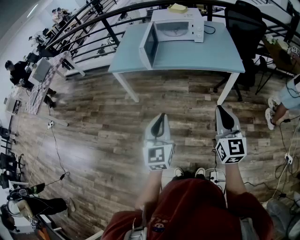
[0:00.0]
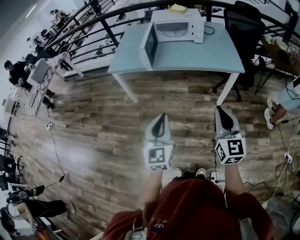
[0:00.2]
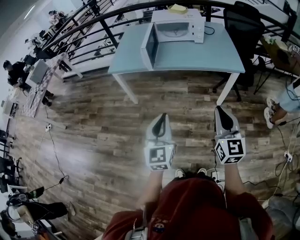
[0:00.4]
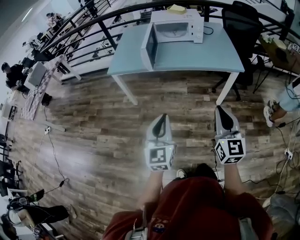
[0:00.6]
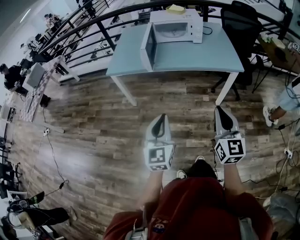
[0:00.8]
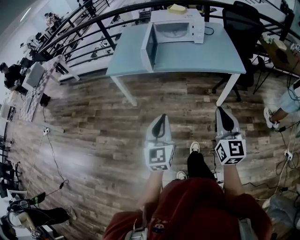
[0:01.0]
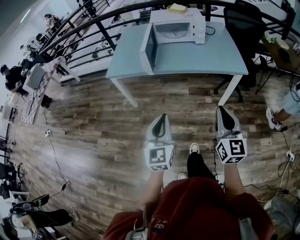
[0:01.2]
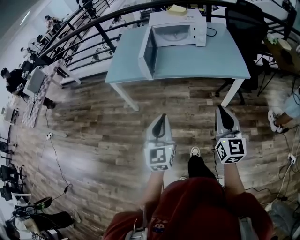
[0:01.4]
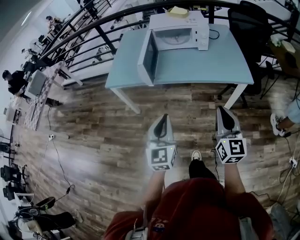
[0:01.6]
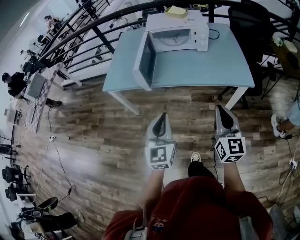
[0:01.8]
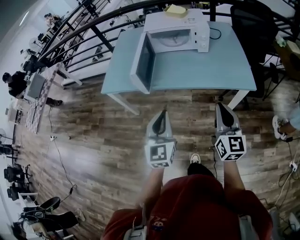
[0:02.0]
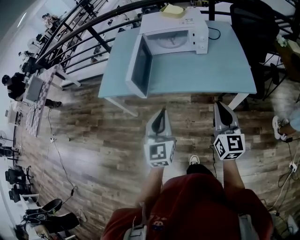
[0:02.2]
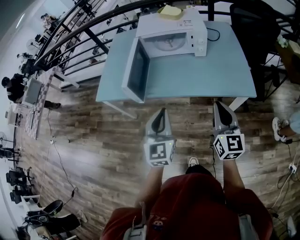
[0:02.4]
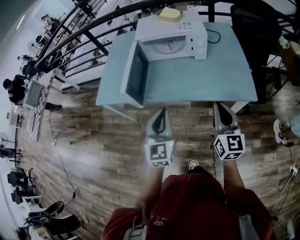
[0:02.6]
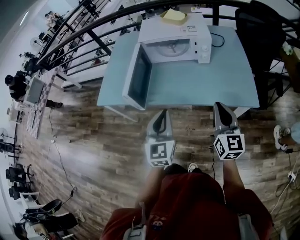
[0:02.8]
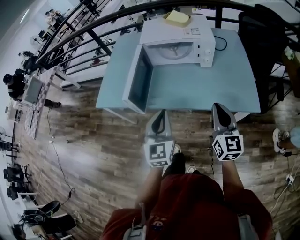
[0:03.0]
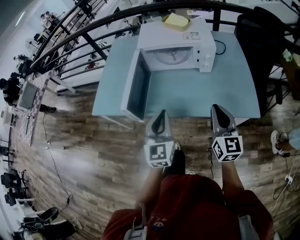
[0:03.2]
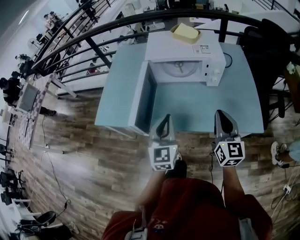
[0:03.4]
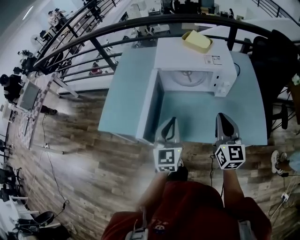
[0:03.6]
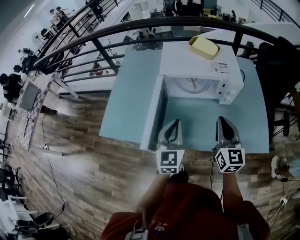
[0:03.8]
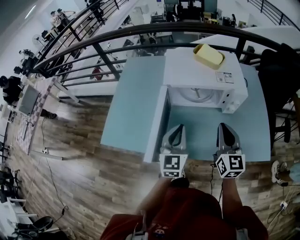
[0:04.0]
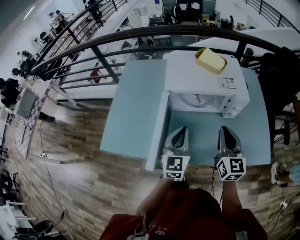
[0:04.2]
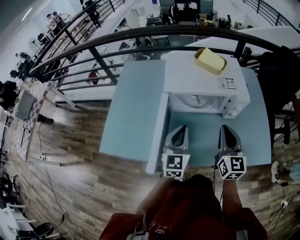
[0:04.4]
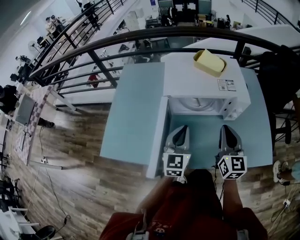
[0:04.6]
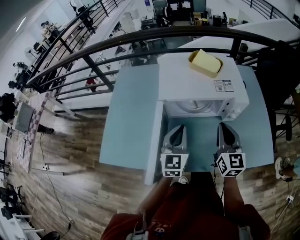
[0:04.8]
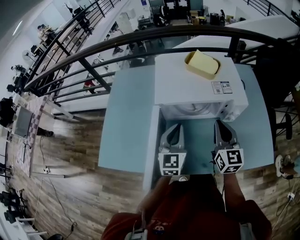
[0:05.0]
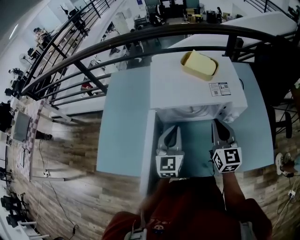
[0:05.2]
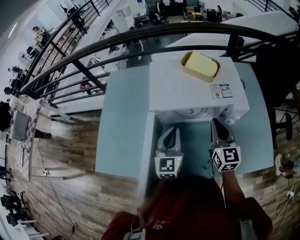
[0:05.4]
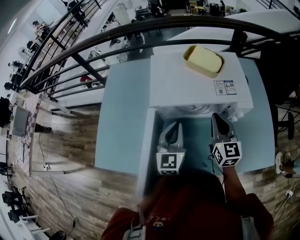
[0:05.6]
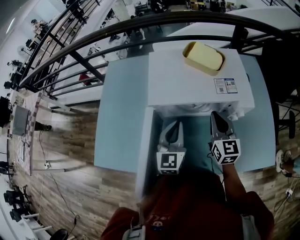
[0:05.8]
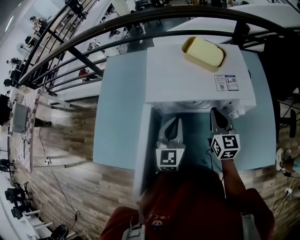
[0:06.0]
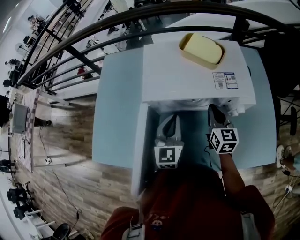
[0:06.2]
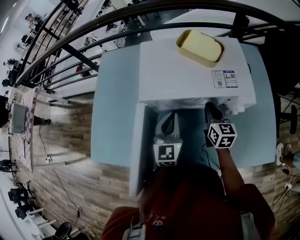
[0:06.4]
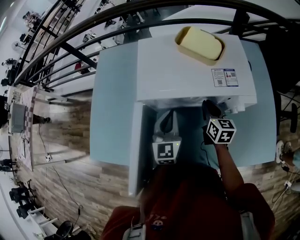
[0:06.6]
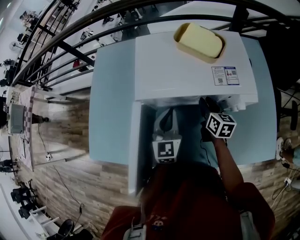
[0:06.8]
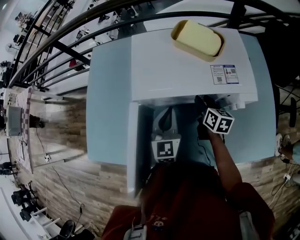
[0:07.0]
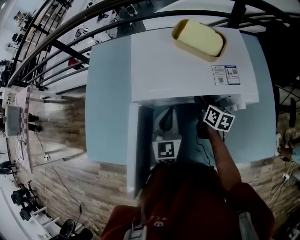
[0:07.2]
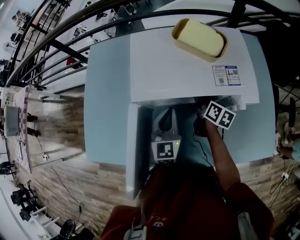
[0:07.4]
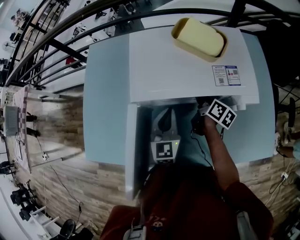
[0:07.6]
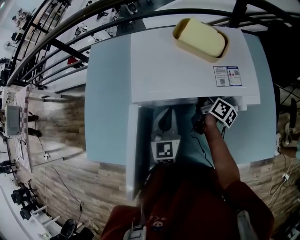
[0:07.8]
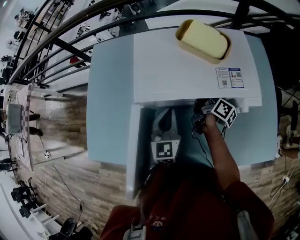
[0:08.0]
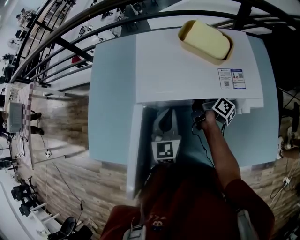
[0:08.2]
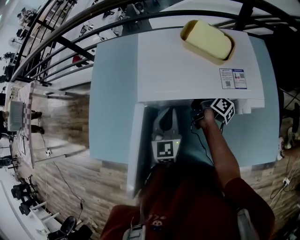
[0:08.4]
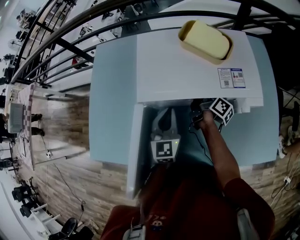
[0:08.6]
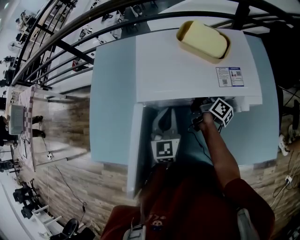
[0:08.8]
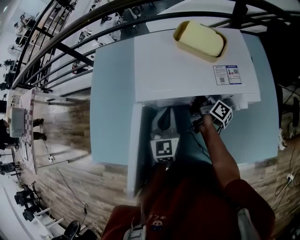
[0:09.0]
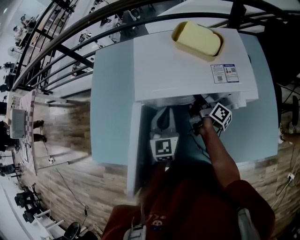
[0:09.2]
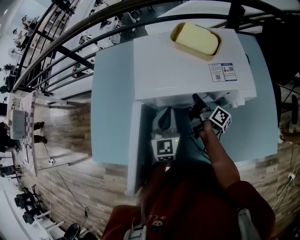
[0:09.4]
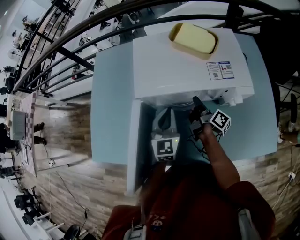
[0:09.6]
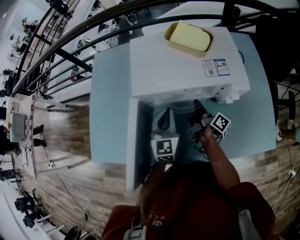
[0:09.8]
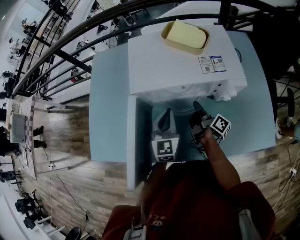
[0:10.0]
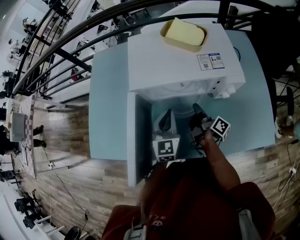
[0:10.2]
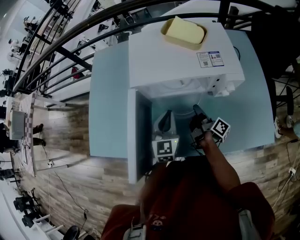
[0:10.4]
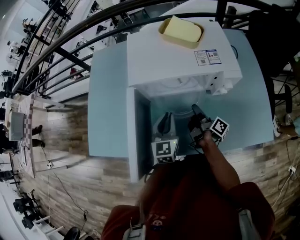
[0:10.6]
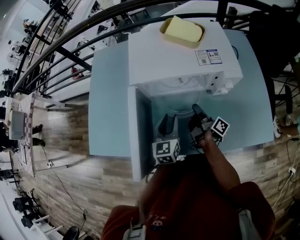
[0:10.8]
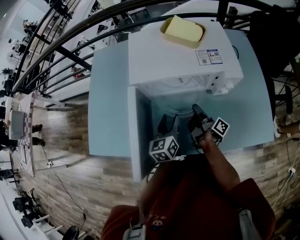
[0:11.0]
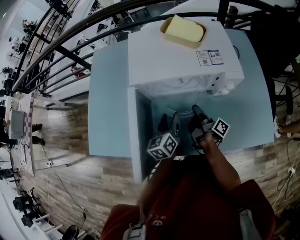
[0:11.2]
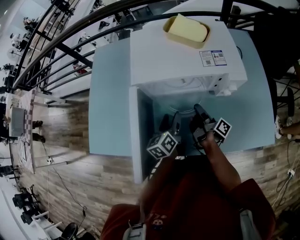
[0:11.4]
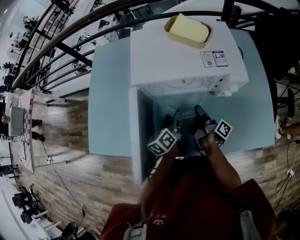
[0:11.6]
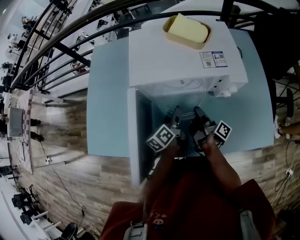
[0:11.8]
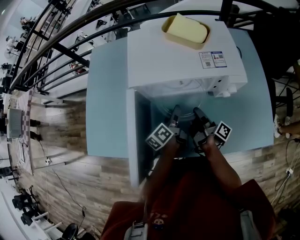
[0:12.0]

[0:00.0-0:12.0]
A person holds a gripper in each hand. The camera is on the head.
0:00.0 to 0:01.6: Both grippers travel together forward, about 20 cm.
0:01.6 to 0:03.0: The grippers both shift forward by about 30 cm.
0:03.0 to 0:04.4: The right gripper heads forward and to the left, covering some 30 cm. Meanwhile the left gripper travels forward by approximately 30 cm.
0:04.4 to 0:06.0: Both grippers travel together forward and downward, some 15 cm.
0:06.0 to 0:07.6: The right gripper is displaced downward and forward by approximately 15 cm, twists roughly 50 degrees clockwise, seen from behind, and opens. Meanwhile the left gripper shifts about 5 cm downward.
0:07.6 to 0:09.0: The right gripper turns by about 30 degrees, and closes its fingers.
0:09.0 to 0:10.4: The left gripper heads backward, covering roughly 10 cm. The right gripper goes about 15 cm backward.
0:10.4 to 0:12.0: The left gripper heads downward, covering roughly 10 cm, rolls counterclockwise, seen from behind, by some 60 degrees, and opens up.

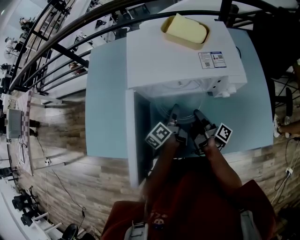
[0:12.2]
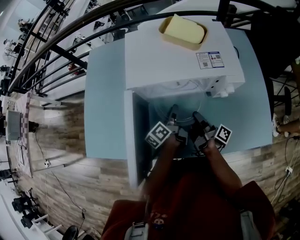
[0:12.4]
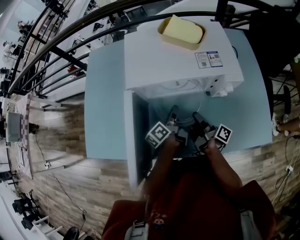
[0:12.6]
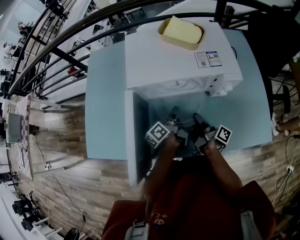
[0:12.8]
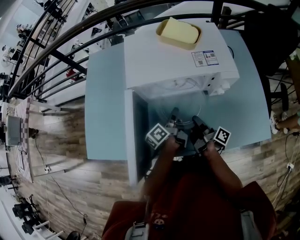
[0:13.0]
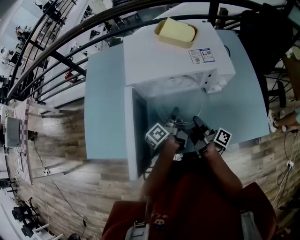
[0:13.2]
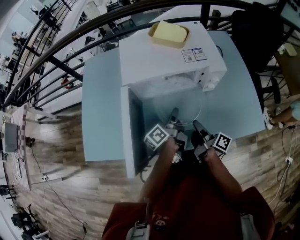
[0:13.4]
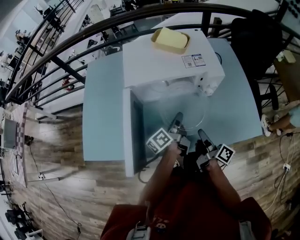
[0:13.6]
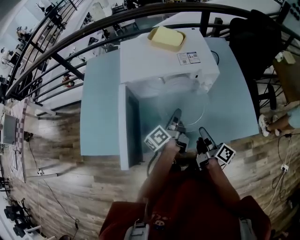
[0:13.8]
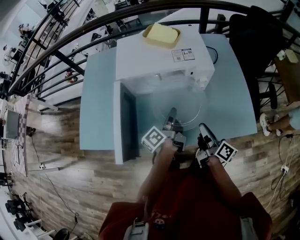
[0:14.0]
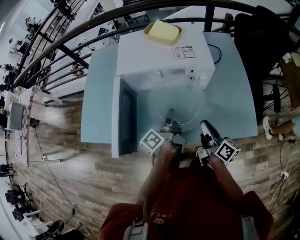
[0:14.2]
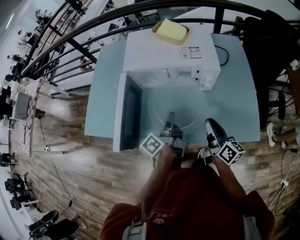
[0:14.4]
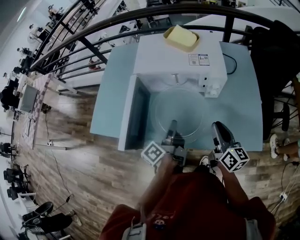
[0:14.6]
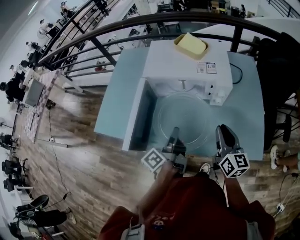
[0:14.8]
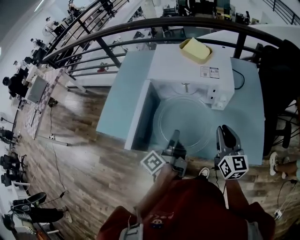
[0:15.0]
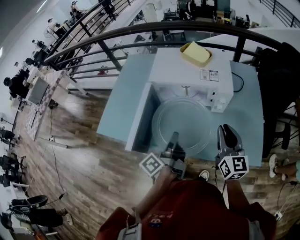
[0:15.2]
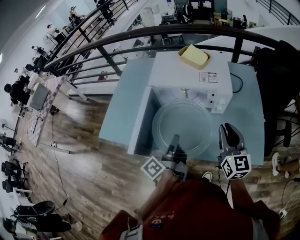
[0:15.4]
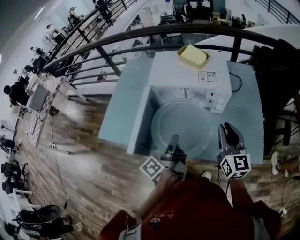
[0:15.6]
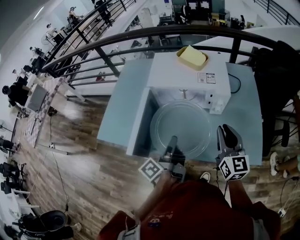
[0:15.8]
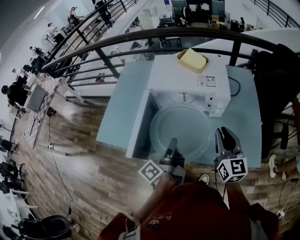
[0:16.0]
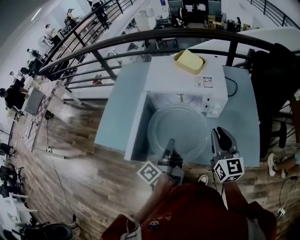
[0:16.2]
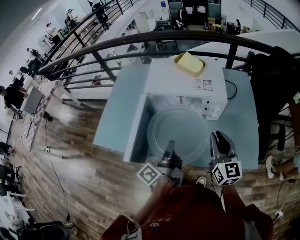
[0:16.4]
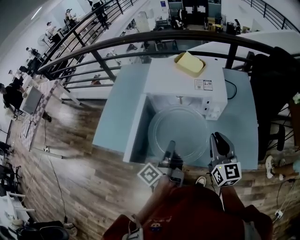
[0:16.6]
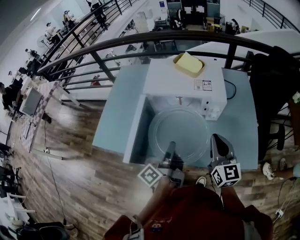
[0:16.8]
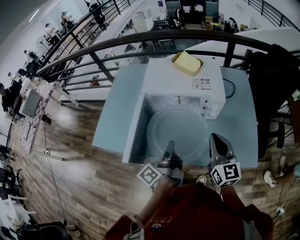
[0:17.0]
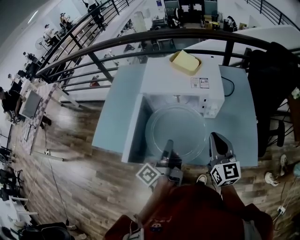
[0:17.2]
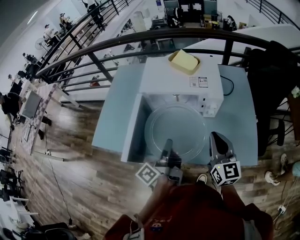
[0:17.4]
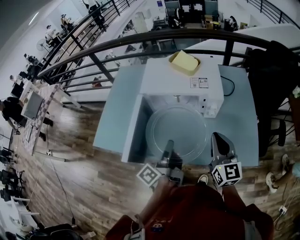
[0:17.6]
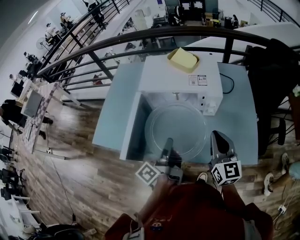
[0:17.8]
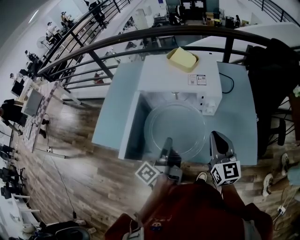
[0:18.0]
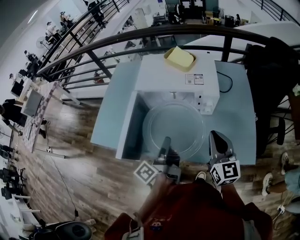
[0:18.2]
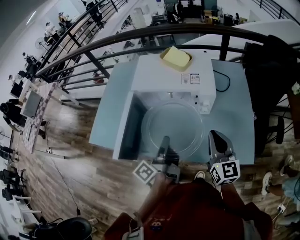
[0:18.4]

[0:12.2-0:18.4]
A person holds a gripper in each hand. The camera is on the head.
0:12.2 to 0:13.8: The right gripper heads backward, upward and to the right, covering roughly 20 cm, and changes its angle by some 30 degrees, while the left gripper shifts roughly 15 cm upward, backward and to the right, and closes up.
0:13.8 to 0:15.4: The right gripper heads upward, covering approximately 15 cm, and rotates around the line of its fingers by approximately 60 degrees, counterclockwise from behind; the left gripper shifts some 15 cm backward and upward, and turns by about 20 degrees.
0:15.4 to 0:16.8: There are only small adjustments of the grippers.
0:16.8 to 0:18.4: The right gripper travels to the right by about 5 cm.

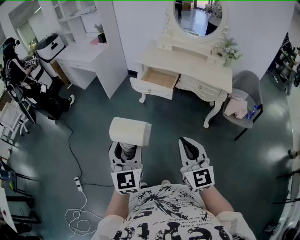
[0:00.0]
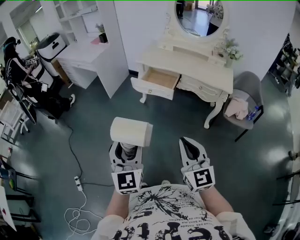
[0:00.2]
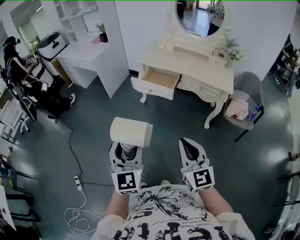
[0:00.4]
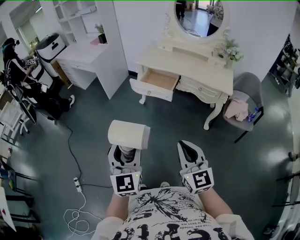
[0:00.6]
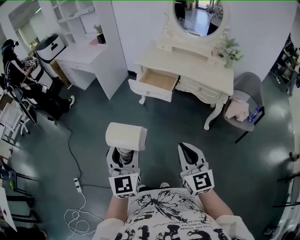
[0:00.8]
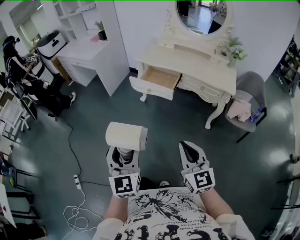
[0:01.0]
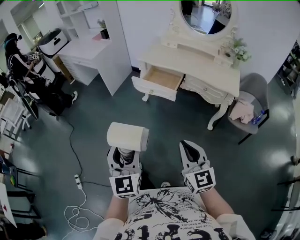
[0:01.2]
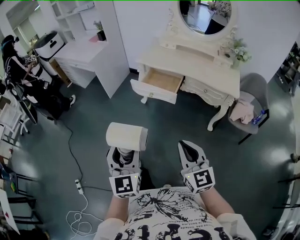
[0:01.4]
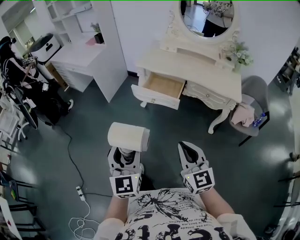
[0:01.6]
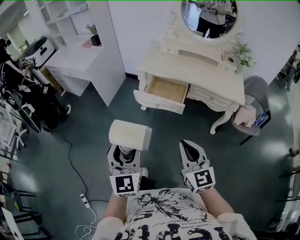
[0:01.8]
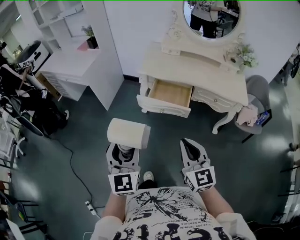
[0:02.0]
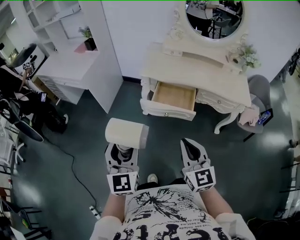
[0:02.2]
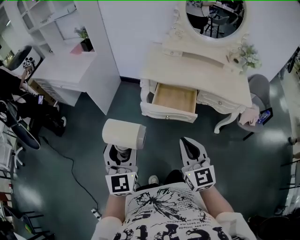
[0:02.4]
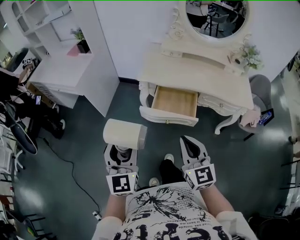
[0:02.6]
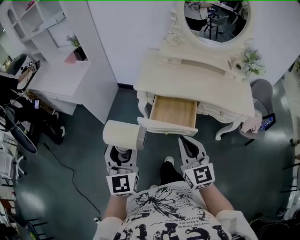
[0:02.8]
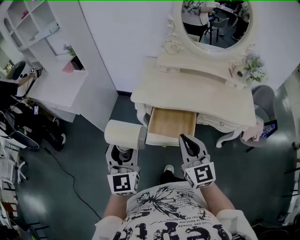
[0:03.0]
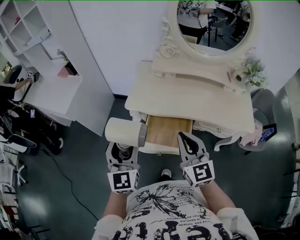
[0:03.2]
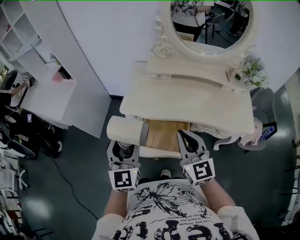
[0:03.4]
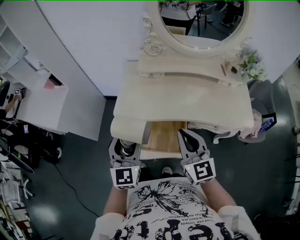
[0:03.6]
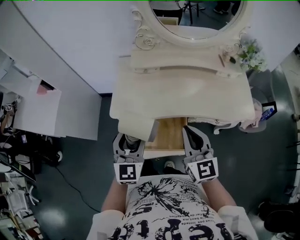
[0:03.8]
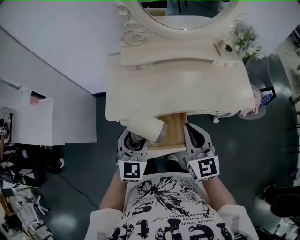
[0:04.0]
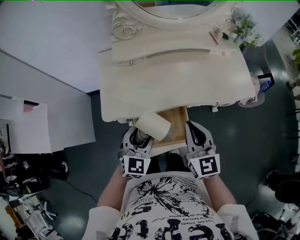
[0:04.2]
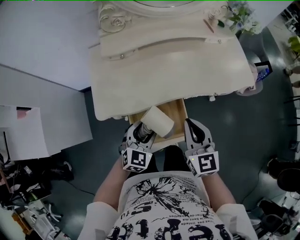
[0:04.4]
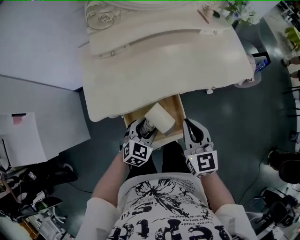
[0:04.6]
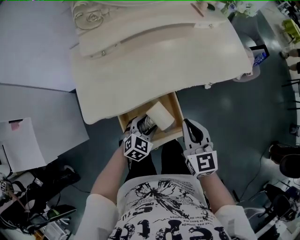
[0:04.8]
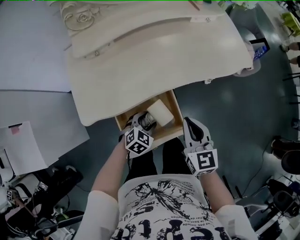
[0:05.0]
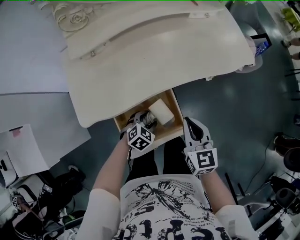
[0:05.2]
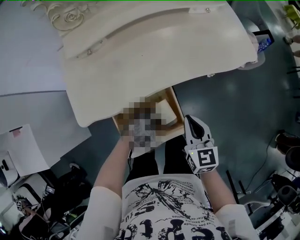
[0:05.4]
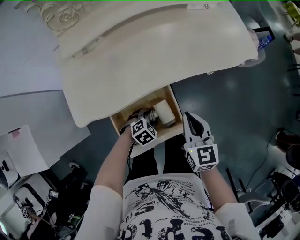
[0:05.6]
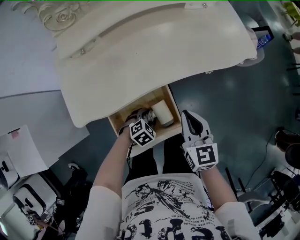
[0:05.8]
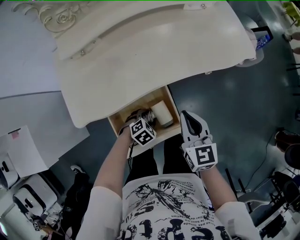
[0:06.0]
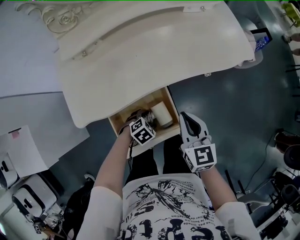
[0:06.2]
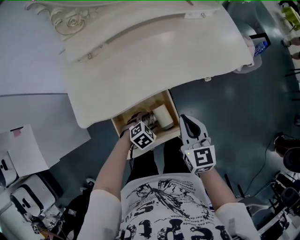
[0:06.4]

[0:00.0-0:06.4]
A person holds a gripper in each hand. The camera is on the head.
0:00.0 to 0:01.6: The grippers both shift forward by roughly 15 cm.
0:01.6 to 0:03.2: The pair of grippers is taken forward, some 50 cm.
0:03.2 to 0:04.8: The right gripper is displaced downward by approximately 15 cm, and changes its angle by about 40 degrees. The left gripper goes about 35 cm downward, and points its fingers approximately 40 degrees further downward.
0:04.8 to 0:06.4: The left gripper is displaced downward by roughly 10 cm, and rotates some 30 degrees; the right gripper shifts by roughly 5 cm.
